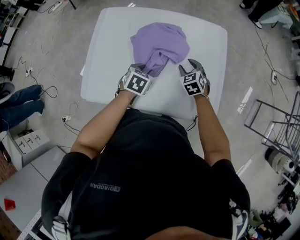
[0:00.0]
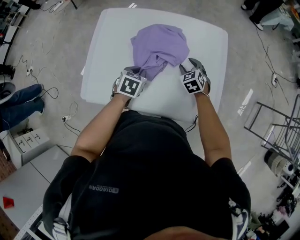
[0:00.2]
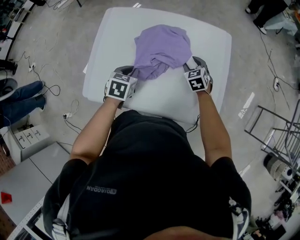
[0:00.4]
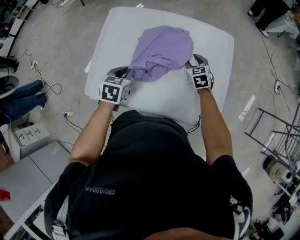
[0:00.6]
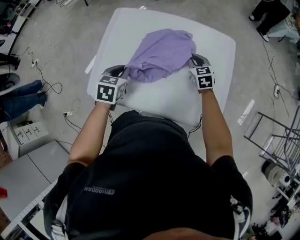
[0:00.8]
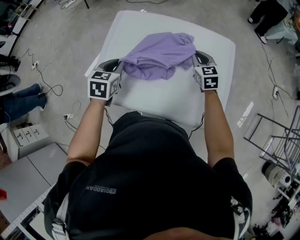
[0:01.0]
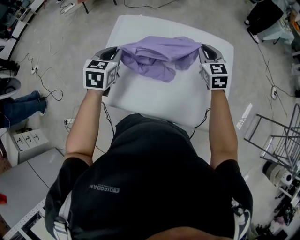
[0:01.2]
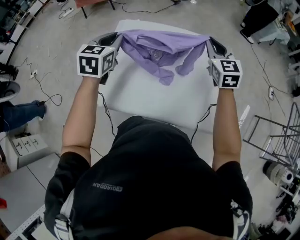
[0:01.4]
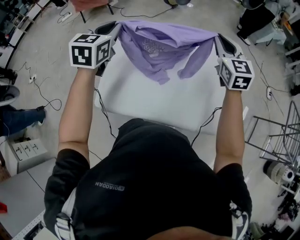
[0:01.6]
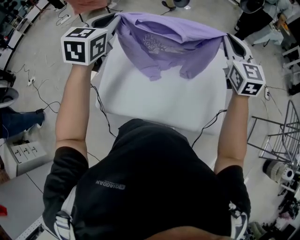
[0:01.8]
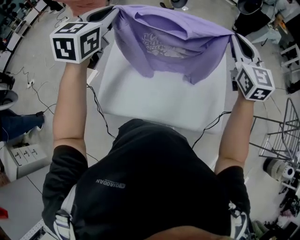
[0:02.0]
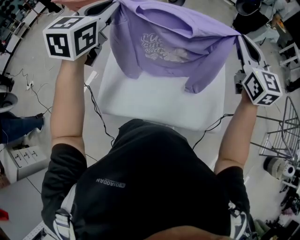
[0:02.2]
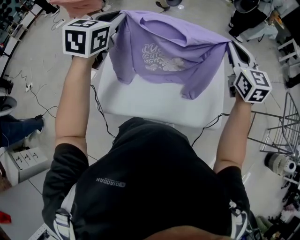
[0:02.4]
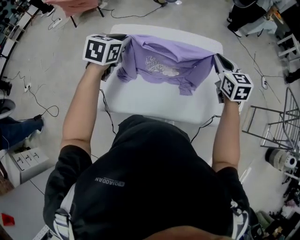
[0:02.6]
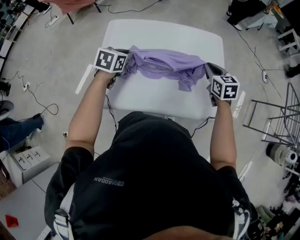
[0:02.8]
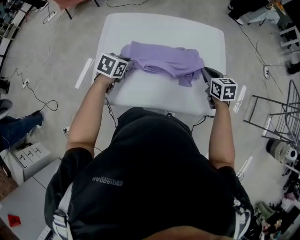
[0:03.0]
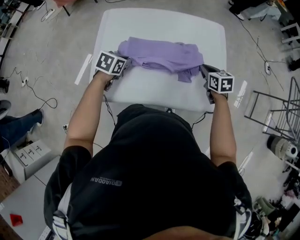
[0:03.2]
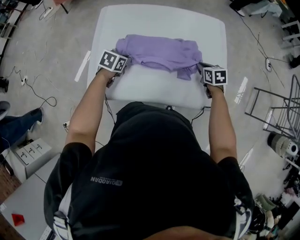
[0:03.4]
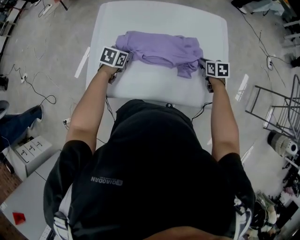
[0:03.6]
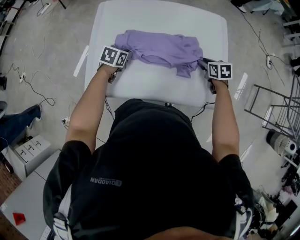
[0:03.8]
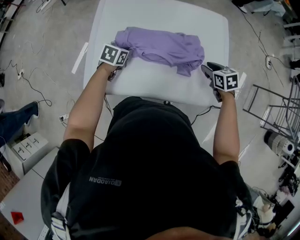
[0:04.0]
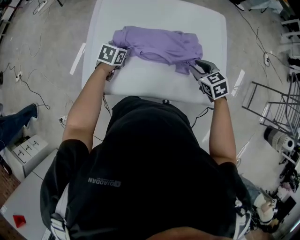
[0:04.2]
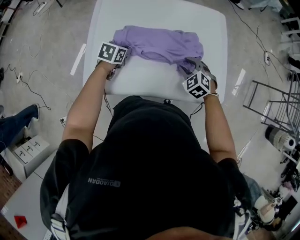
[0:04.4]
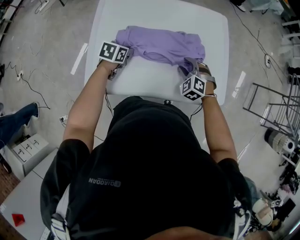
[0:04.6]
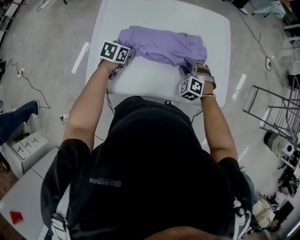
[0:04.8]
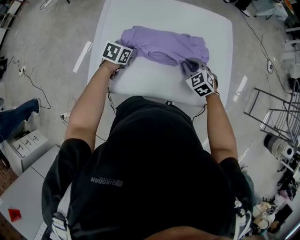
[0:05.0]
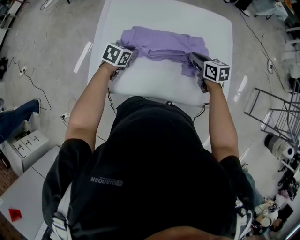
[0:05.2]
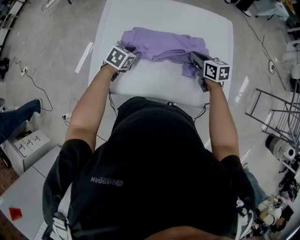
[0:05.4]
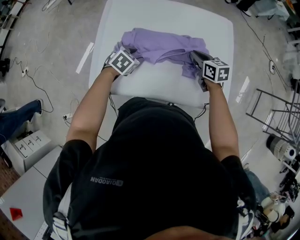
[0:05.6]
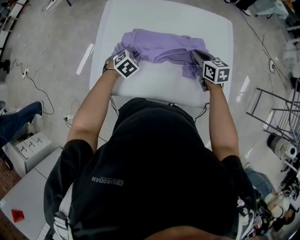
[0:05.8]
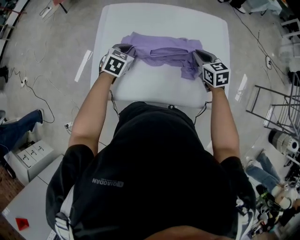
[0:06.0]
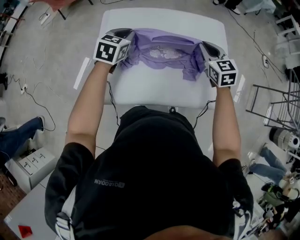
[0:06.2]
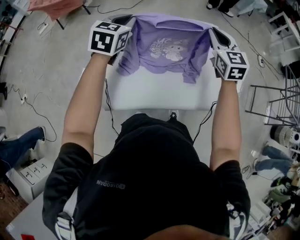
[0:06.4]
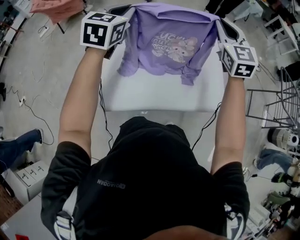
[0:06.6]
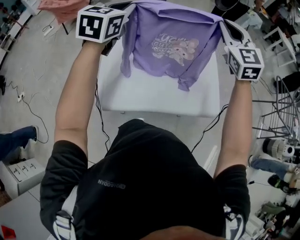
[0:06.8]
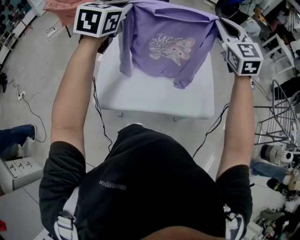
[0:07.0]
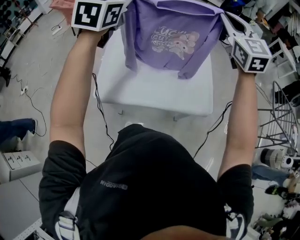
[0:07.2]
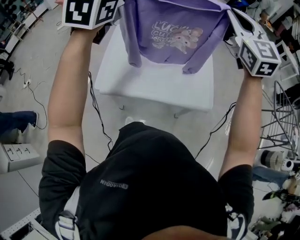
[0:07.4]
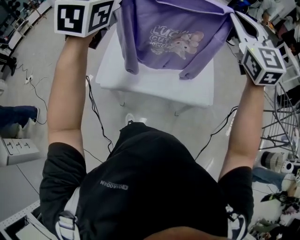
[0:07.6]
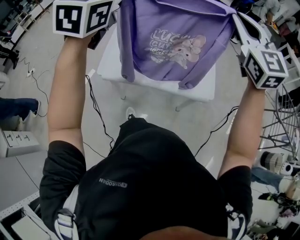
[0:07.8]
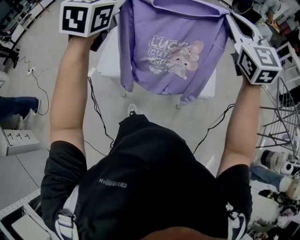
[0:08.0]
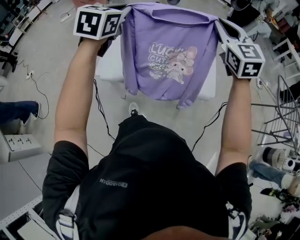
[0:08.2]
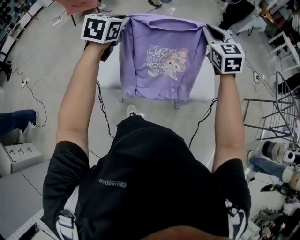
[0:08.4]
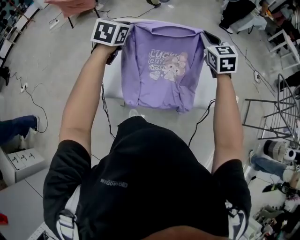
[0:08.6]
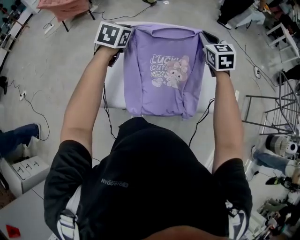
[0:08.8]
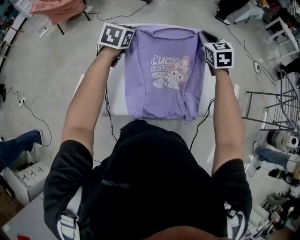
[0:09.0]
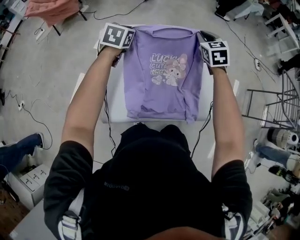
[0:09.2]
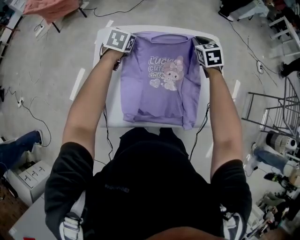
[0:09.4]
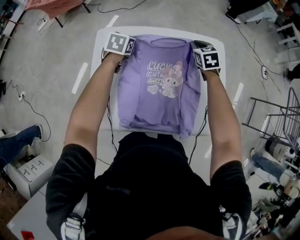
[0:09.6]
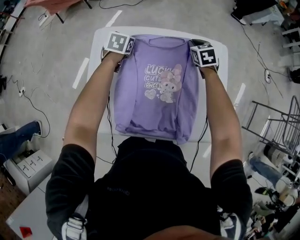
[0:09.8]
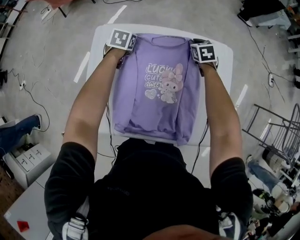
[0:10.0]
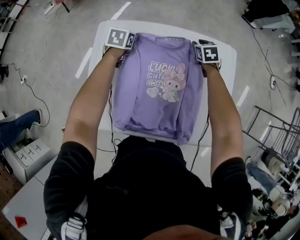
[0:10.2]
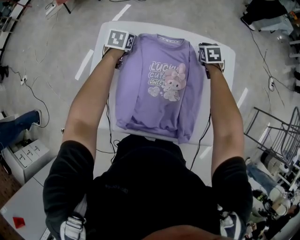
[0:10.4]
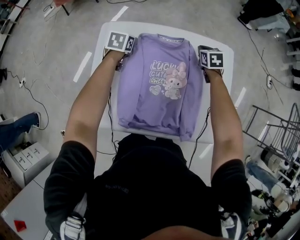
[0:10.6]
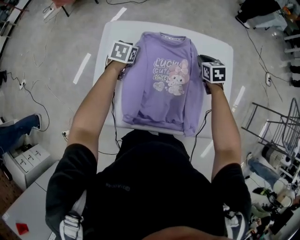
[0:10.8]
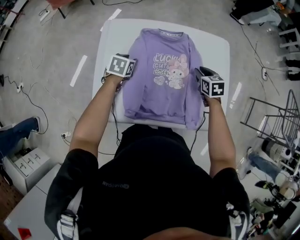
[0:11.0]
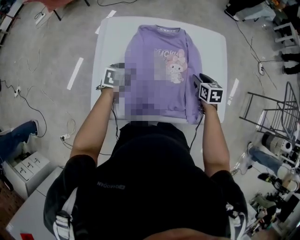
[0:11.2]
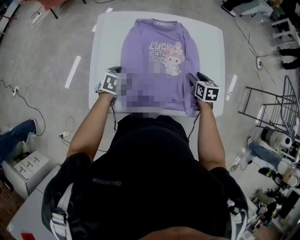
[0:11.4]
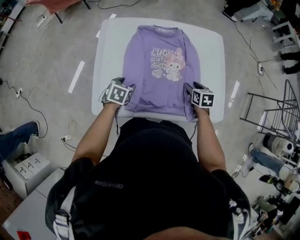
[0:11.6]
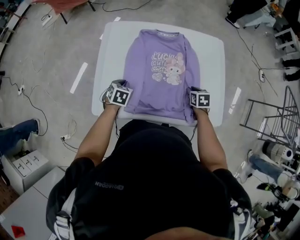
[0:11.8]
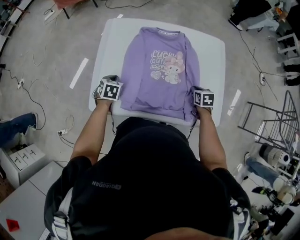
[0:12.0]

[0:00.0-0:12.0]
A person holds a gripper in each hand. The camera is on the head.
0:00.0 to 0:01.6: The right gripper goes some 35 cm upward, tilts its fingers some 30 degrees upward, and closes up; the left gripper shifts roughly 35 cm upward and to the left, tilts its fingers about 30 degrees upward, and closes its fingers.
0:01.6 to 0:03.0: The left gripper travels downward by about 25 cm, and changes its angle by some 40 degrees. The right gripper goes some 25 cm downward and backward, and changes its angle by approximately 40 degrees.
0:03.0 to 0:04.4: The left gripper goes some 10 cm downward. Meanwhile the right gripper goes up and down, about 15 cm each way, reversing 2 times, rotates around the line of its fingers by about 50 degrees, counterclockwise from behind, and opens.
0:04.4 to 0:06.0: The right gripper moves forward and upward, roughly 10 cm, rotates roughly 40 degrees, and closes, while the left gripper shifts some 5 cm upward, changes its angle by about 20 degrees, and opens and closes again.
0:06.0 to 0:07.6: The grippers both shift upward by some 50 cm. The right gripper tilts its fingers roughly 40 degrees upward. The left gripper tips its fingers upward by approximately 40 degrees.
0:07.6 to 0:09.0: Both grippers travel together downward and forward, roughly 40 cm. The right gripper swivels roughly 30 degrees. The left gripper tilts its fingers about 30 degrees downward.
0:09.0 to 0:10.4: The grippers both shift downward and forward by roughly 25 cm. The left gripper turns by roughly 20 degrees, and opens its fingers, while the right gripper swivels about 30 degrees.
0:10.4 to 0:12.0: The two grippers go some 30 cm backward. The right gripper opens and closes again. The left gripper closes its fingers.

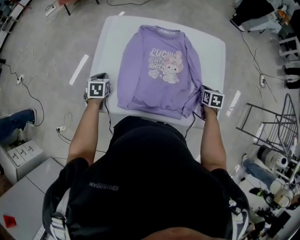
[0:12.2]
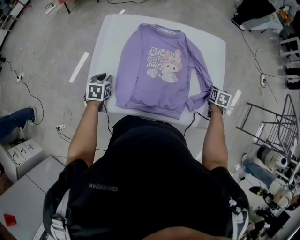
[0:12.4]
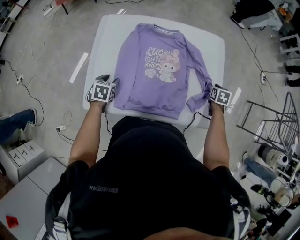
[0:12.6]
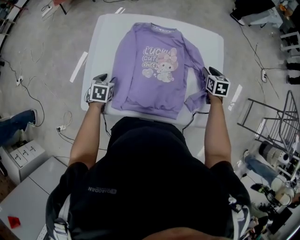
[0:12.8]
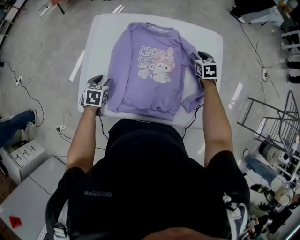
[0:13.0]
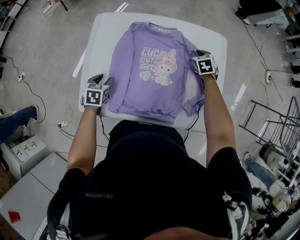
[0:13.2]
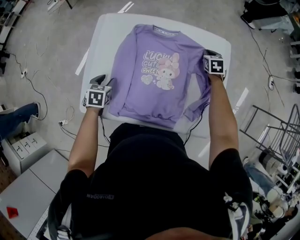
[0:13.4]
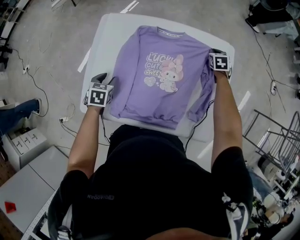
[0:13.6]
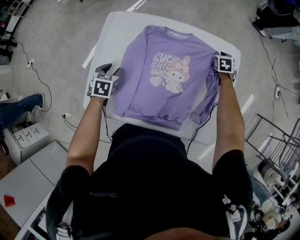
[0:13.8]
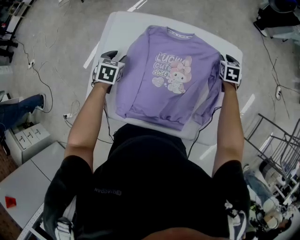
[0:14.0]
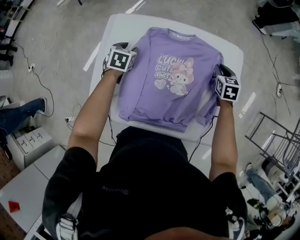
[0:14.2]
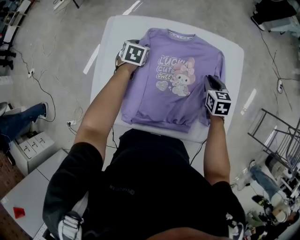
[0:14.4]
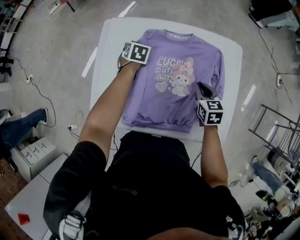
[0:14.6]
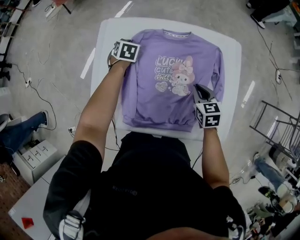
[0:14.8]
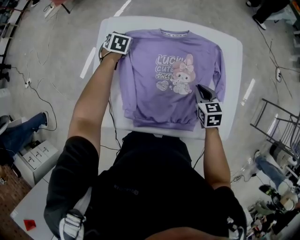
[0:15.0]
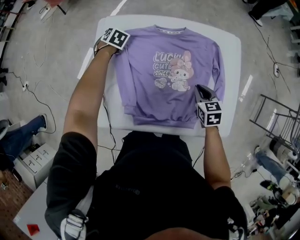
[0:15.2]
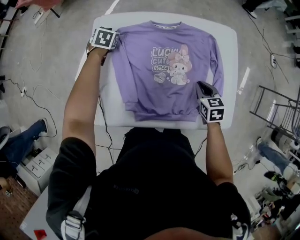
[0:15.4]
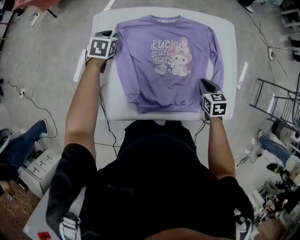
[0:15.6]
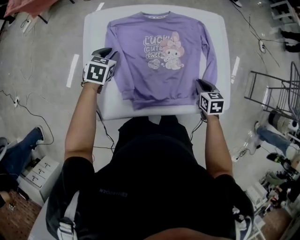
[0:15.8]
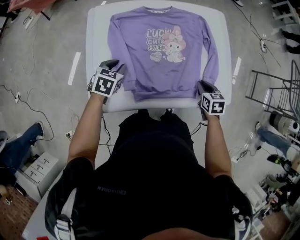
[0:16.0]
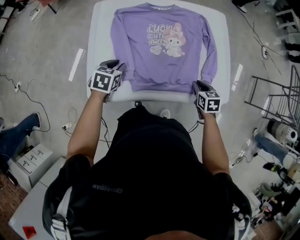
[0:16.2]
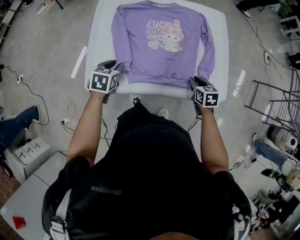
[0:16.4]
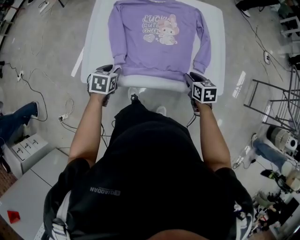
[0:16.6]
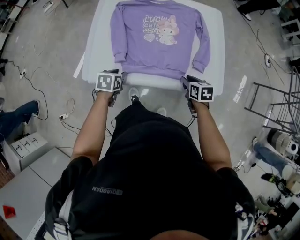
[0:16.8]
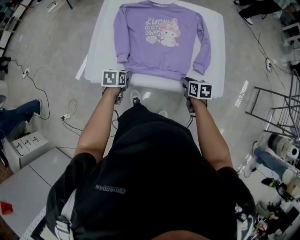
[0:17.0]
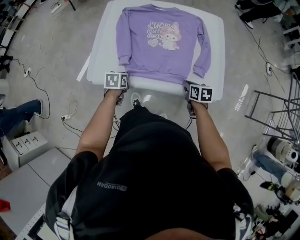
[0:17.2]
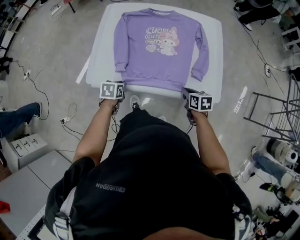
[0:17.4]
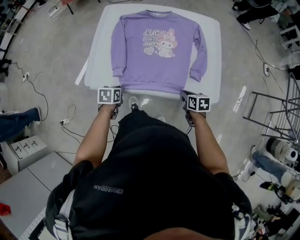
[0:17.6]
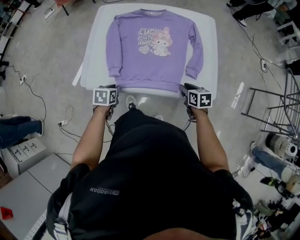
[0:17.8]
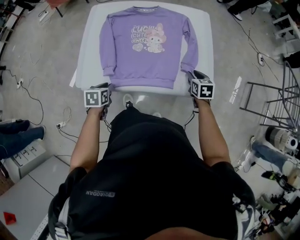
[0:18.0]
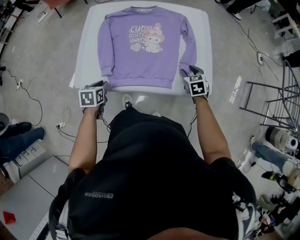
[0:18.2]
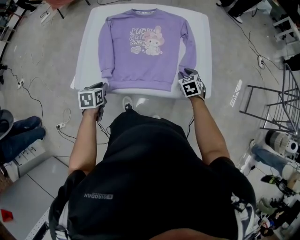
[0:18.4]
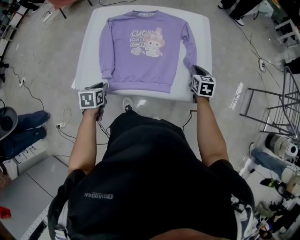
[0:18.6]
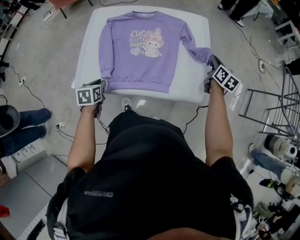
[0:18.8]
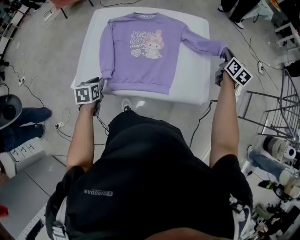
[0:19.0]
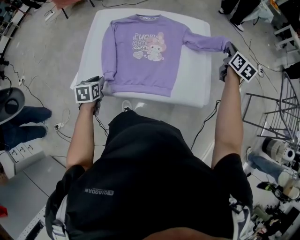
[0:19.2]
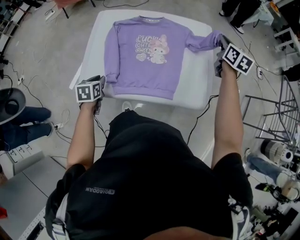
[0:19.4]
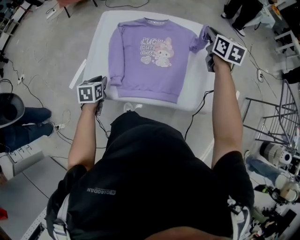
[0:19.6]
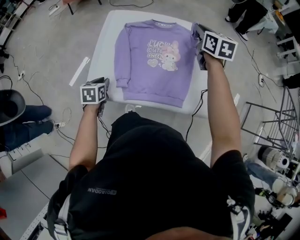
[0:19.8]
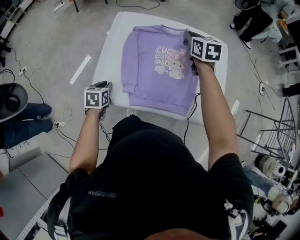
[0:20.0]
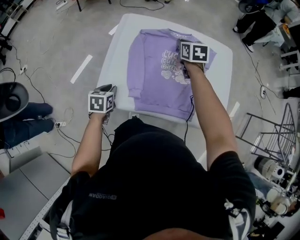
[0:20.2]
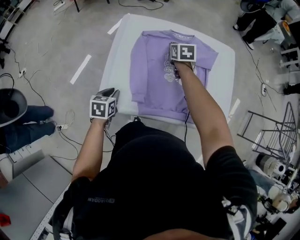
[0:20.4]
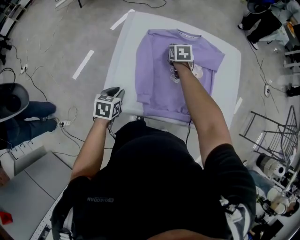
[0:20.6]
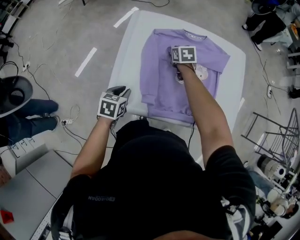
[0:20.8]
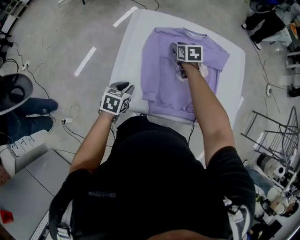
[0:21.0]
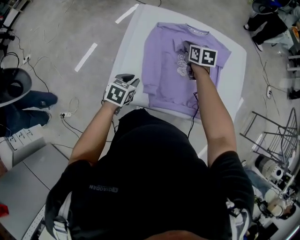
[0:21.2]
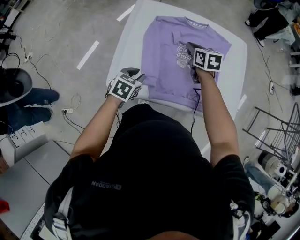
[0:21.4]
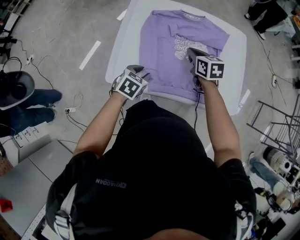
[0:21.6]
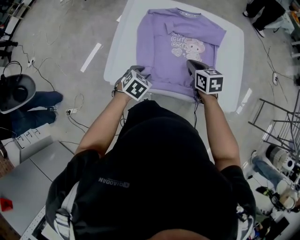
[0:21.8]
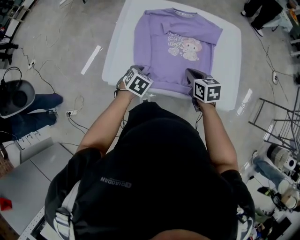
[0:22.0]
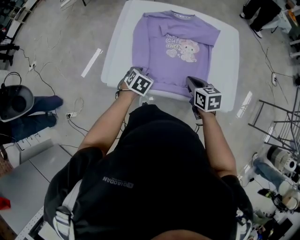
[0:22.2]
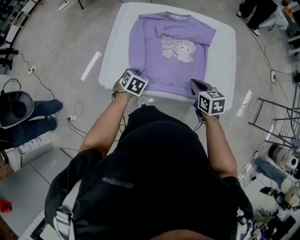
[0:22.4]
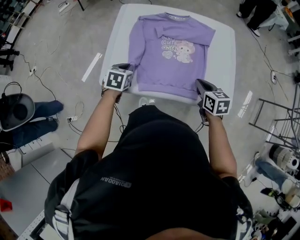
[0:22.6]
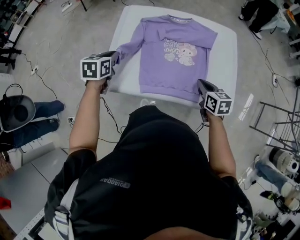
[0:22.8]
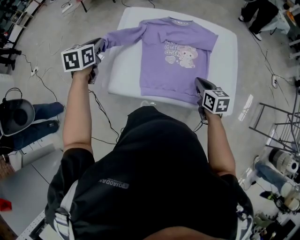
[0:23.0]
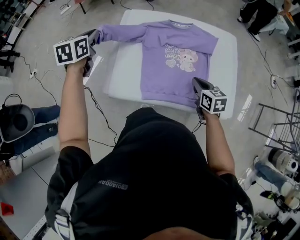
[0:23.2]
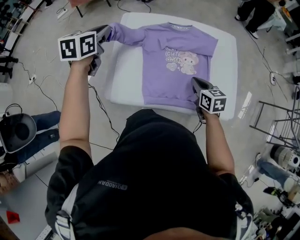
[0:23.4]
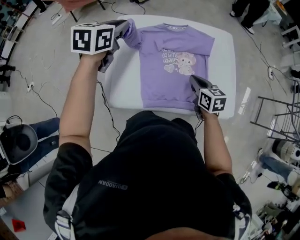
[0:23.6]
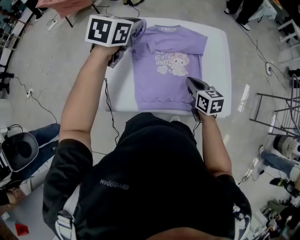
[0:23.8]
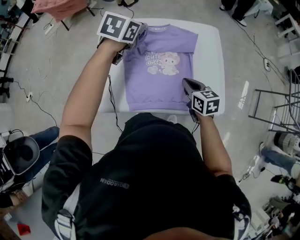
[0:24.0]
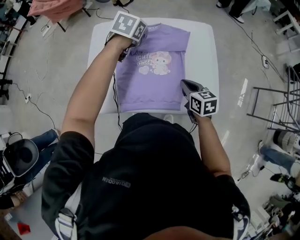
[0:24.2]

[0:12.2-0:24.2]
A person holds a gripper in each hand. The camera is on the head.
0:12.2 to 0:13.8: The right gripper moves forward, some 25 cm, swivels roughly 20 degrees, and opens, then closes again, while the left gripper is displaced forward and to the right by some 10 cm, and opens up.
0:13.8 to 0:15.2: The left gripper goes approximately 20 cm forward, turns by about 20 degrees, and closes up. The right gripper shifts roughly 30 cm backward and to the left.
0:15.2 to 0:16.6: The left gripper moves backward, approximately 40 cm, swivels some 20 degrees, and opens up. The right gripper goes roughly 15 cm backward.
0:16.6 to 0:18.2: The right gripper goes some 5 cm to the right, turns by about 20 degrees, and closes, then opens again.
0:18.2 to 0:19.8: The right gripper heads upward, forward and to the left, covering roughly 35 cm, turns by some 30 degrees, and closes up. The left gripper heads to the left and forward, covering roughly 10 cm.
0:19.8 to 0:21.2: The right gripper goes some 25 cm downward and to the left, and opens, then closes once more.
0:21.2 to 0:22.6: The right gripper shifts about 30 cm backward and to the right.
0:22.6 to 0:24.2: The left gripper shifts about 35 cm forward, to the right and upward.
